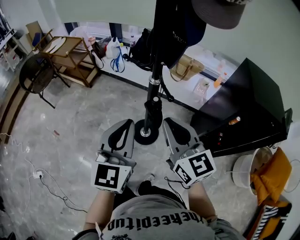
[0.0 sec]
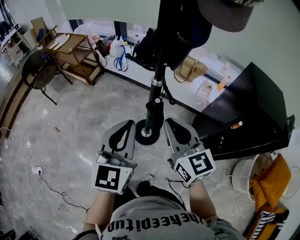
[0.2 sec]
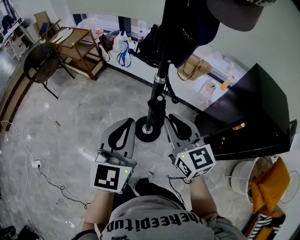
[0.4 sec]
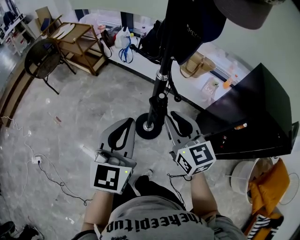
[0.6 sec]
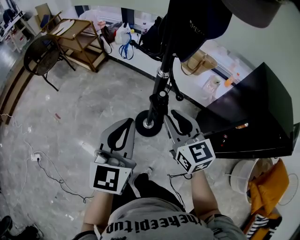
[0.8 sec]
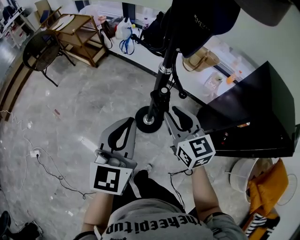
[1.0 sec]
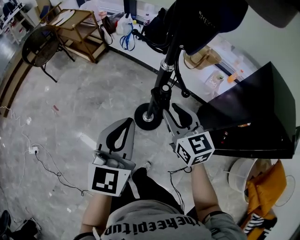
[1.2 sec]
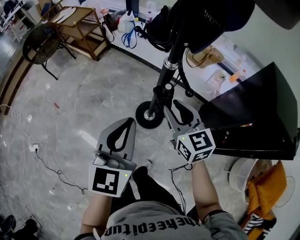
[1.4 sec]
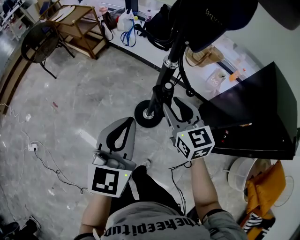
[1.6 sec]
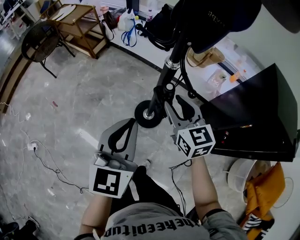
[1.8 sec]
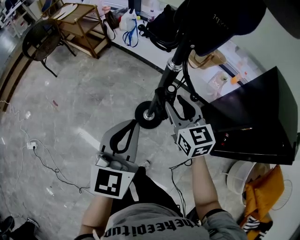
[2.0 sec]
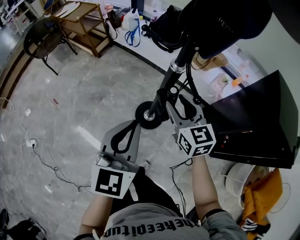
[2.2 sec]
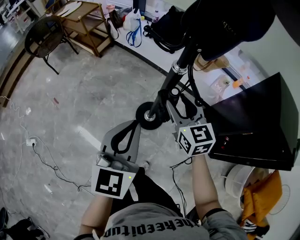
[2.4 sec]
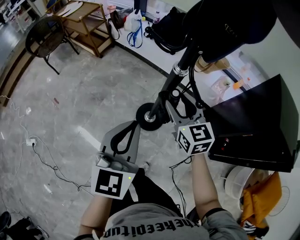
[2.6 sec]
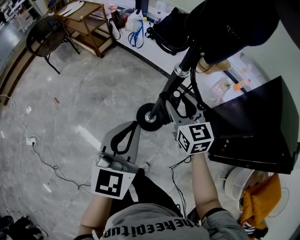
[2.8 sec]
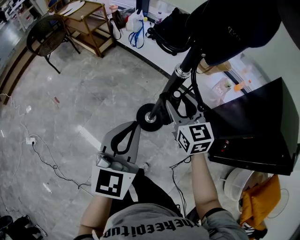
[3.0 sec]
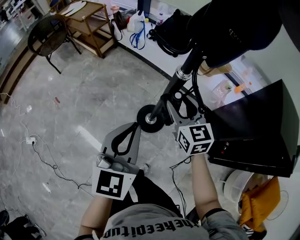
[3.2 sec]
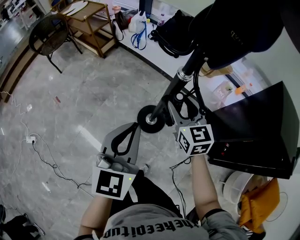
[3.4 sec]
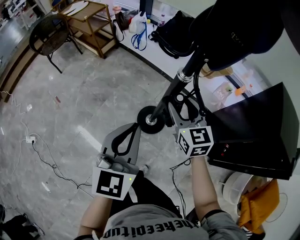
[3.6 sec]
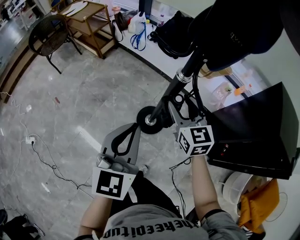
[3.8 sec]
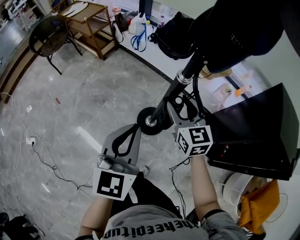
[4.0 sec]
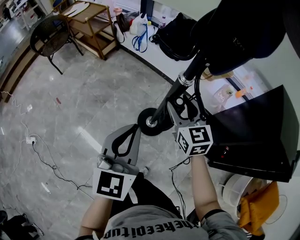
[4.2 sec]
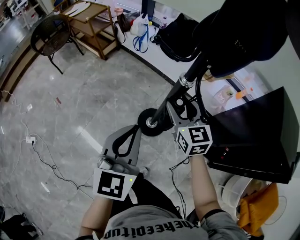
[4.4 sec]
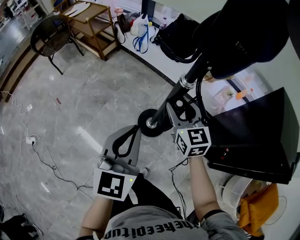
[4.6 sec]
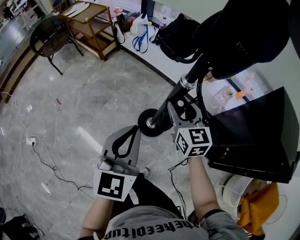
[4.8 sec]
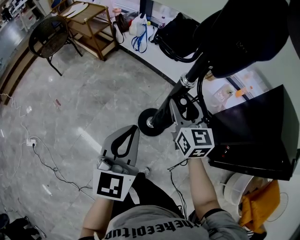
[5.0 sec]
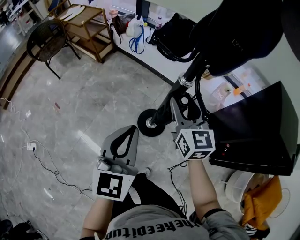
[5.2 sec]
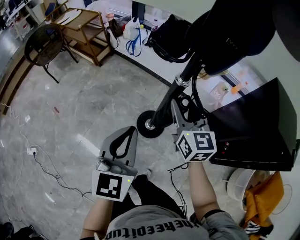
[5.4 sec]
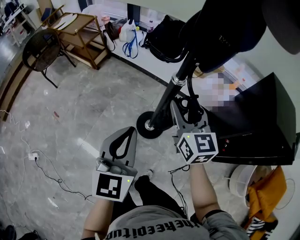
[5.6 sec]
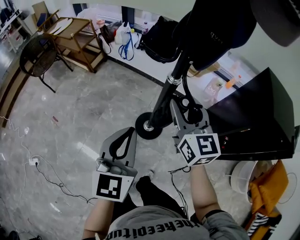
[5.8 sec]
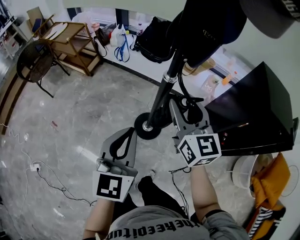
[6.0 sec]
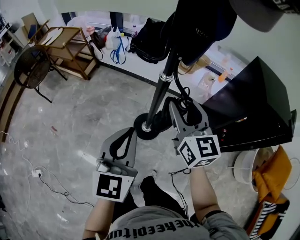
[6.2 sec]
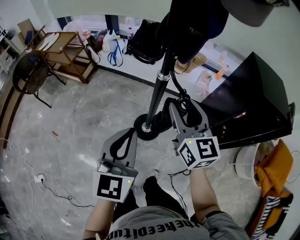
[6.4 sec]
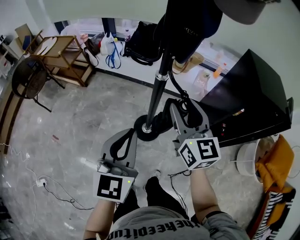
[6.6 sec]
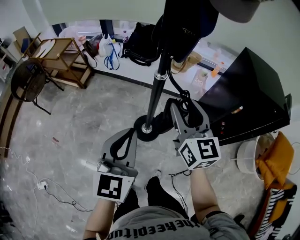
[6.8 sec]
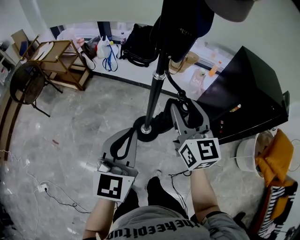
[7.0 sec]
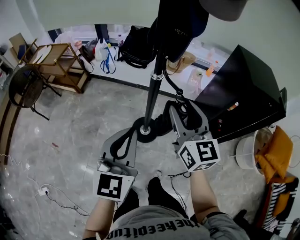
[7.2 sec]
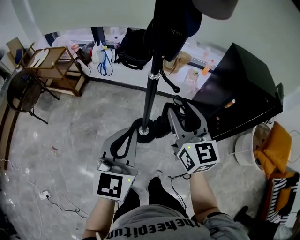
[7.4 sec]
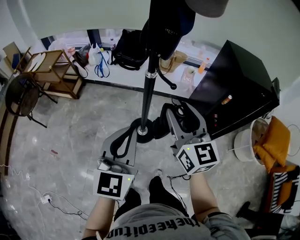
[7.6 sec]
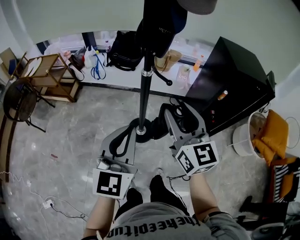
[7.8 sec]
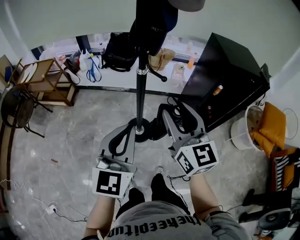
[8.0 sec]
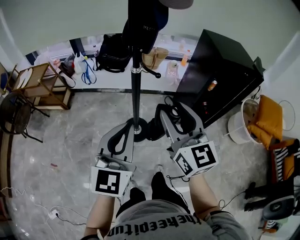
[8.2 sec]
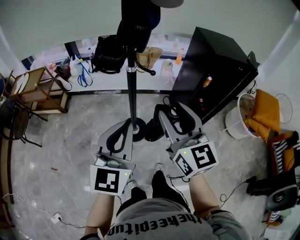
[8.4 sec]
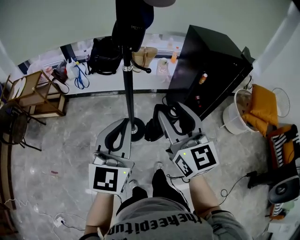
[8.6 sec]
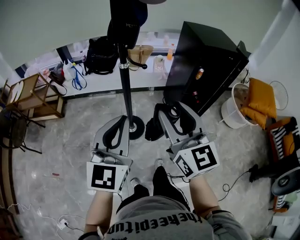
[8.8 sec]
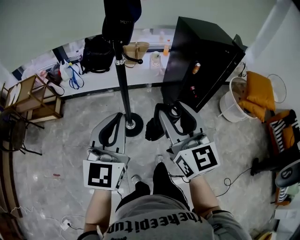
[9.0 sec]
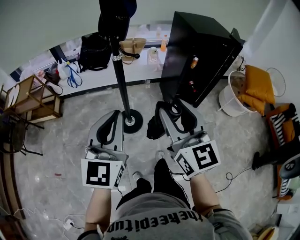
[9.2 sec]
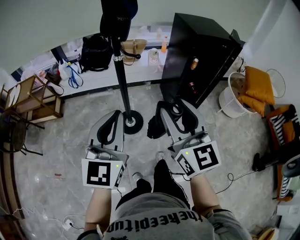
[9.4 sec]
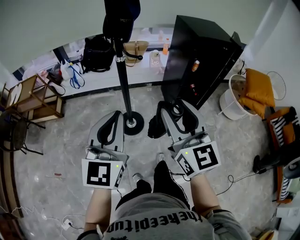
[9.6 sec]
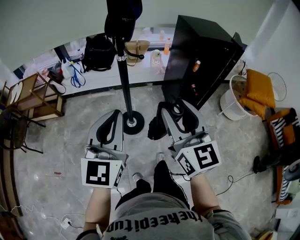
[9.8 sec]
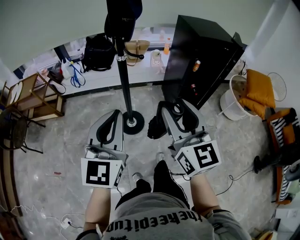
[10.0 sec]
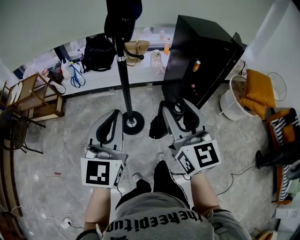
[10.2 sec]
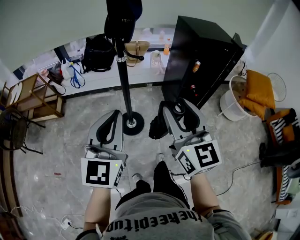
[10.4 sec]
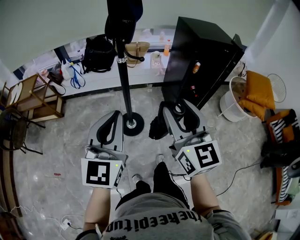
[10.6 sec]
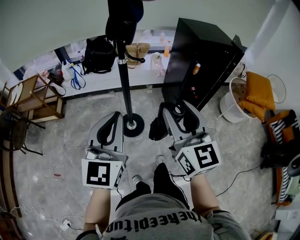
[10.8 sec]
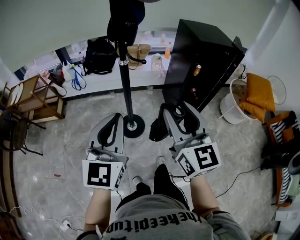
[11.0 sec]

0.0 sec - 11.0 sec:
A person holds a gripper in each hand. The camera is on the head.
0.0 sec - 1.6 sec: The right gripper travels downward and forward by approximately 15 cm, and opens; the left gripper moves downward, approximately 5 cm.
1.6 sec - 3.2 sec: The right gripper goes some 5 cm forward.
3.2 sec - 4.8 sec: The grippers move only a little.
4.8 sec - 6.2 sec: The right gripper moves upward and backward, about 15 cm.
6.2 sec - 7.8 sec: The right gripper shifts some 15 cm backward and upward. The left gripper goes approximately 5 cm backward.
7.8 sec - 9.4 sec: The left gripper shifts approximately 5 cm backward, while the right gripper goes approximately 15 cm backward.
9.4 sec - 11.0 sec: The grippers make only small movements.

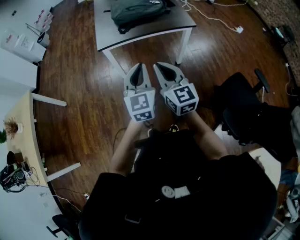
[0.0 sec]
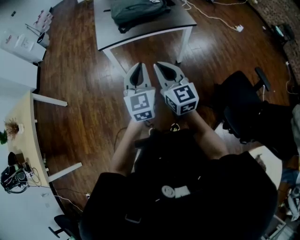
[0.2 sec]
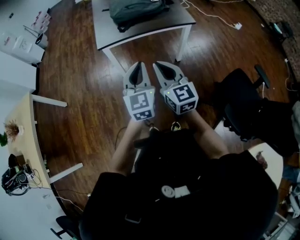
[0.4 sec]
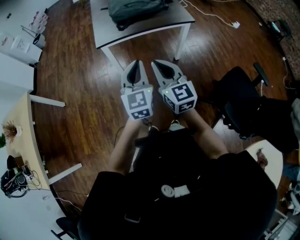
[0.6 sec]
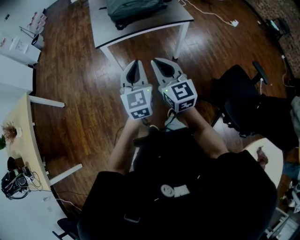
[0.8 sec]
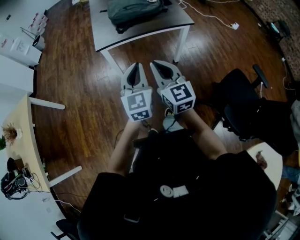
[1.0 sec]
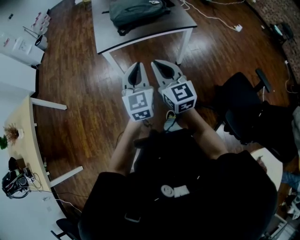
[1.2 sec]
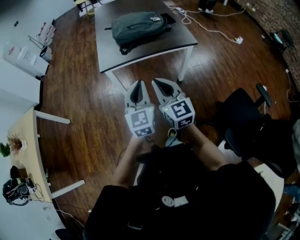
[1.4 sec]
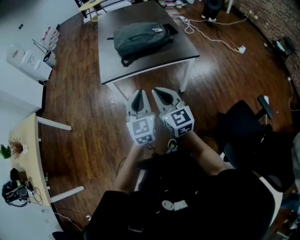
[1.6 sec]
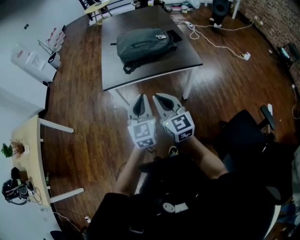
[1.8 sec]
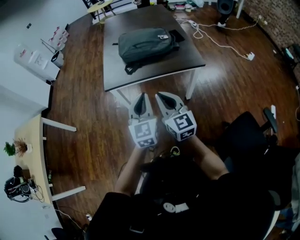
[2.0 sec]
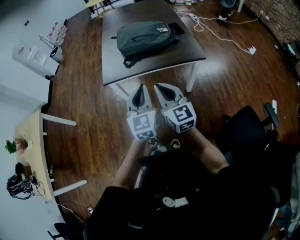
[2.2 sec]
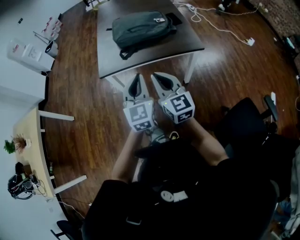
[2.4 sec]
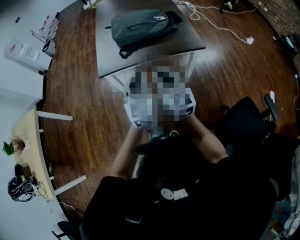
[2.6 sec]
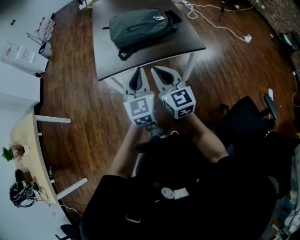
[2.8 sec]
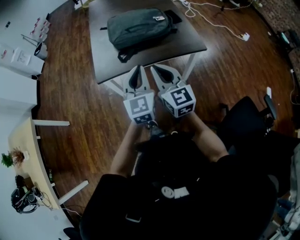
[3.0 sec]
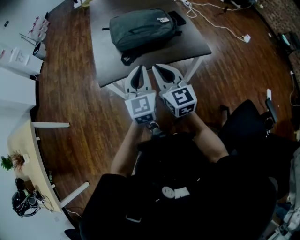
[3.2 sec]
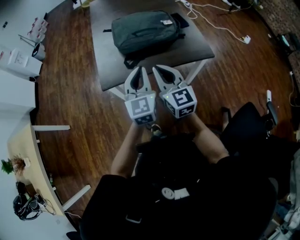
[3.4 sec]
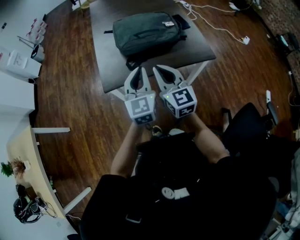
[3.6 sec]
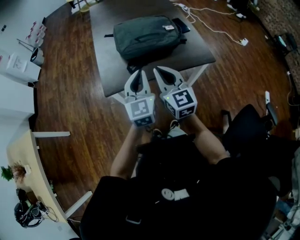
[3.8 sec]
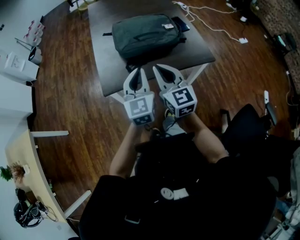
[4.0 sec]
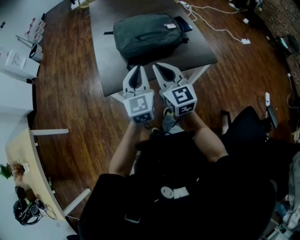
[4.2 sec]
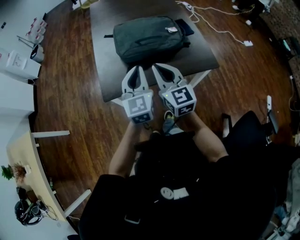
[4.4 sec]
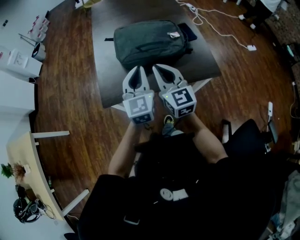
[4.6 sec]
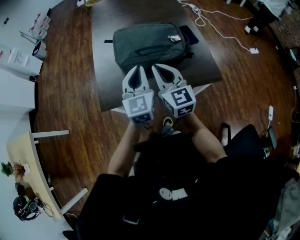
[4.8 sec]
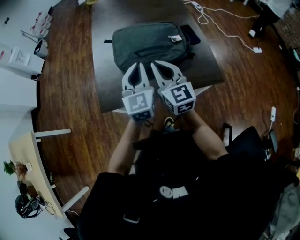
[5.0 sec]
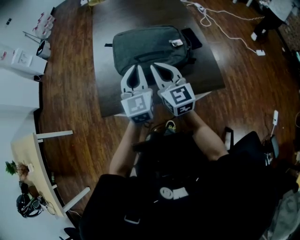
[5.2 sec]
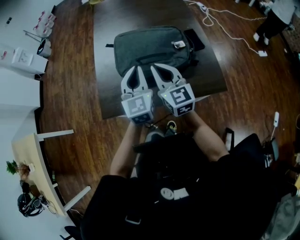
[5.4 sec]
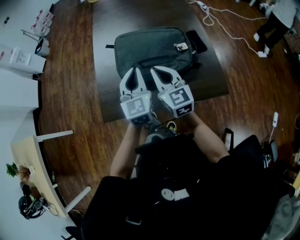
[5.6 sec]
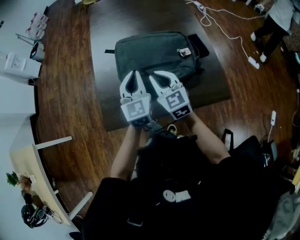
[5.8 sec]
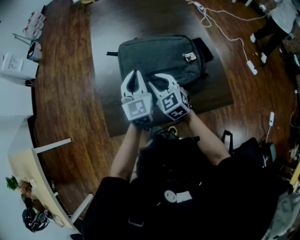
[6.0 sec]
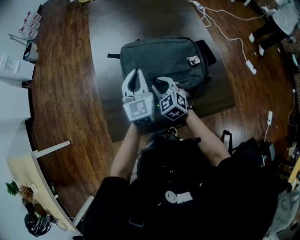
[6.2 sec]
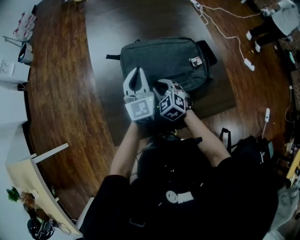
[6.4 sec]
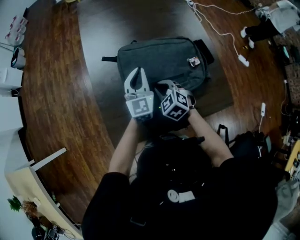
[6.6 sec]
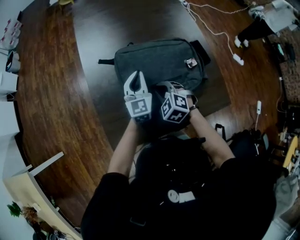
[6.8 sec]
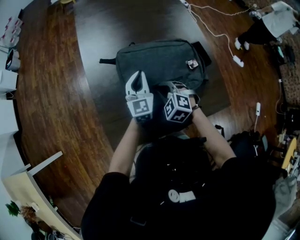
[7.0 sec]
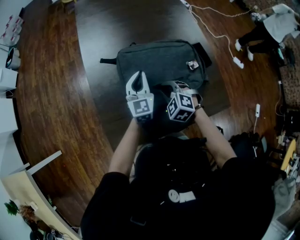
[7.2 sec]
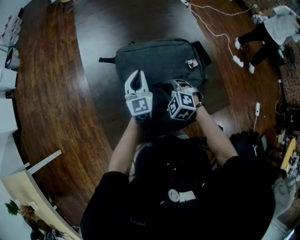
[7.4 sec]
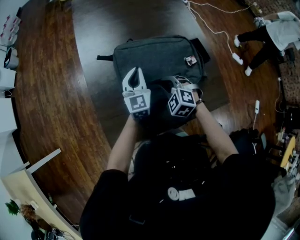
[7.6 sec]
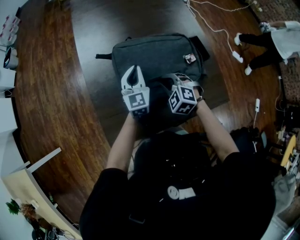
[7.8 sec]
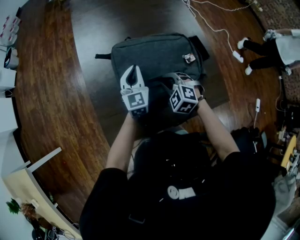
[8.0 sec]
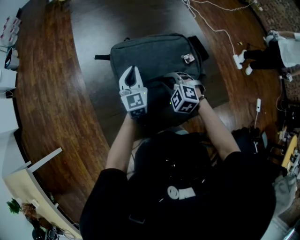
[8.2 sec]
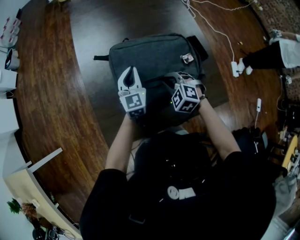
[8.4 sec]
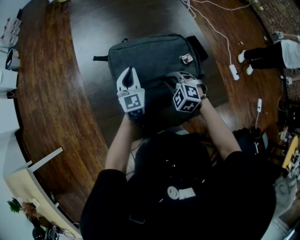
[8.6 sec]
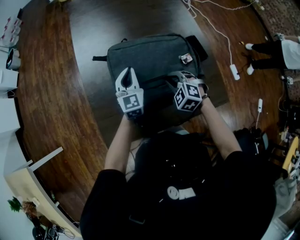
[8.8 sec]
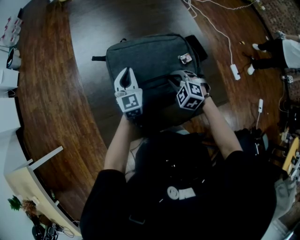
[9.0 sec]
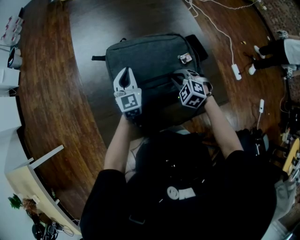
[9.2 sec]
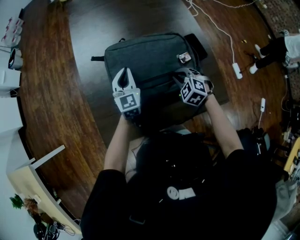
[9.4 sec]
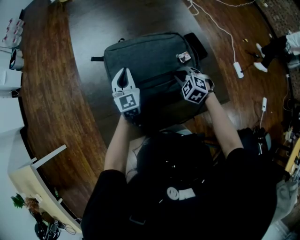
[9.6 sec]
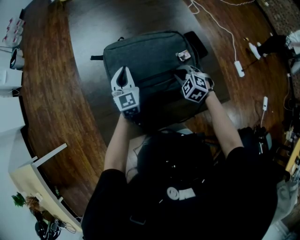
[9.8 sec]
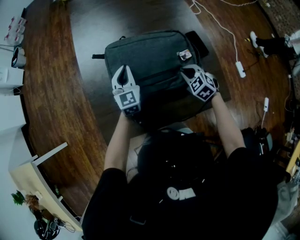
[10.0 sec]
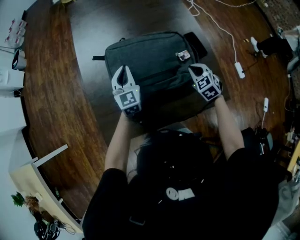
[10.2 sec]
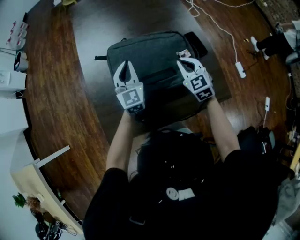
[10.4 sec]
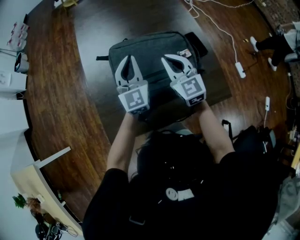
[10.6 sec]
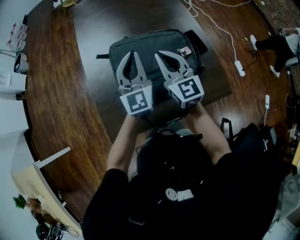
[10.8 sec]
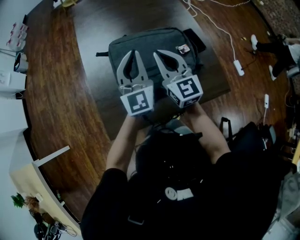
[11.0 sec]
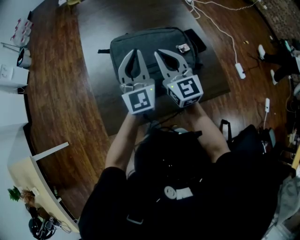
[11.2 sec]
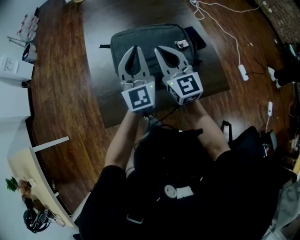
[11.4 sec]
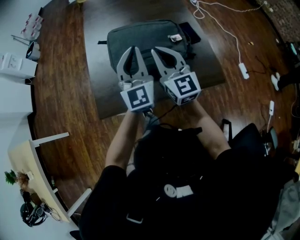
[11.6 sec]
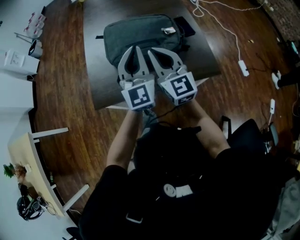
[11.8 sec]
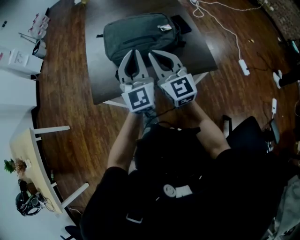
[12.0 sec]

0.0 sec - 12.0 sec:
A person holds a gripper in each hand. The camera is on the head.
0.0 sec - 1.6 sec: Both grippers travel together forward, some 10 cm.
1.6 sec - 3.0 sec: The two grippers go roughly 15 cm forward.
3.0 sec - 4.4 sec: The grippers both shift forward by approximately 15 cm.
4.4 sec - 6.0 sec: The left gripper shifts about 25 cm forward; the right gripper is displaced forward and downward by some 25 cm, swivels about 30 degrees, and opens.
6.0 sec - 7.6 sec: The left gripper is displaced downward and forward by roughly 15 cm, while the right gripper goes some 10 cm downward, and changes its angle by about 40 degrees.
7.6 sec - 9.0 sec: The right gripper heads to the right, covering roughly 10 cm.
9.0 sec - 10.4 sec: The left gripper shifts approximately 5 cm upward; the right gripper is displaced upward and to the right by approximately 10 cm, and changes its angle by about 40 degrees.
10.4 sec - 12.0 sec: The grippers both shift backward and upward by some 30 cm. The right gripper tilts its fingers roughly 30 degrees upward.

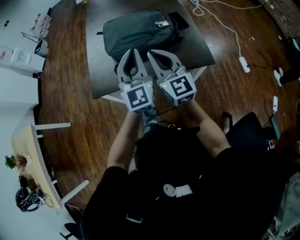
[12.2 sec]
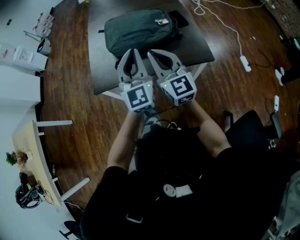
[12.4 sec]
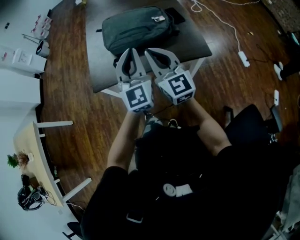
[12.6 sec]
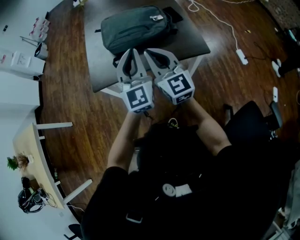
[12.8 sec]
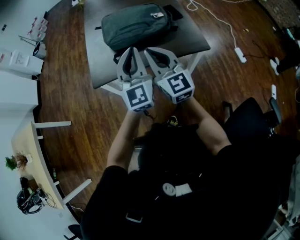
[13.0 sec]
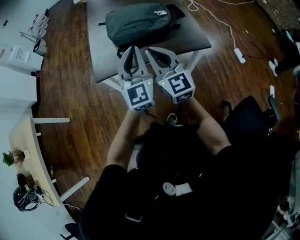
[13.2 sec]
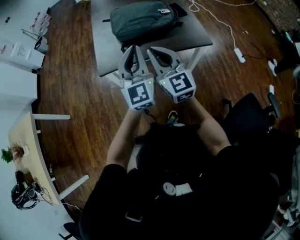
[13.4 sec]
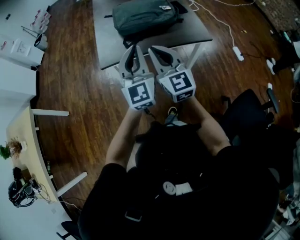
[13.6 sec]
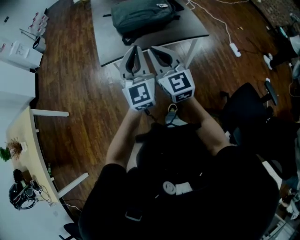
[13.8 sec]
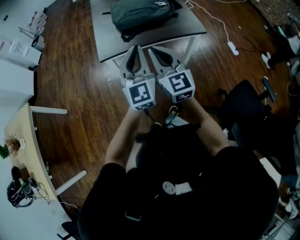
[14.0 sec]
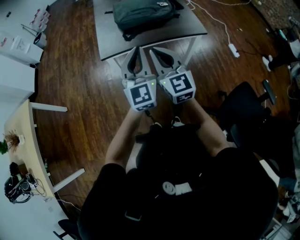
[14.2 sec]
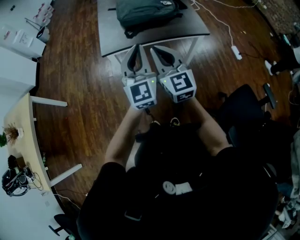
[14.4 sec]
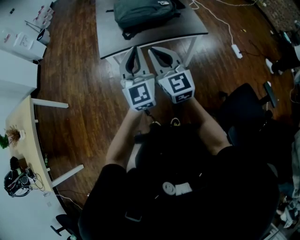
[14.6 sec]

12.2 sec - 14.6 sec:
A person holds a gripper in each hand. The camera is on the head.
12.2 sec - 13.4 sec: The two grippers go roughly 15 cm backward and to the left.
13.4 sec - 14.6 sec: The two grippers go roughly 10 cm backward.
